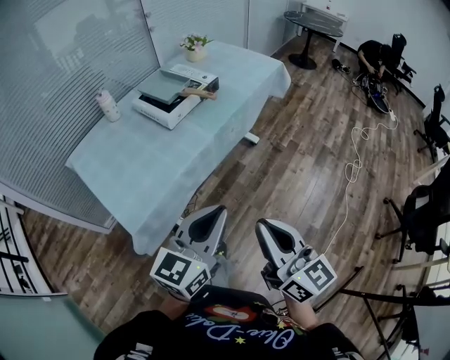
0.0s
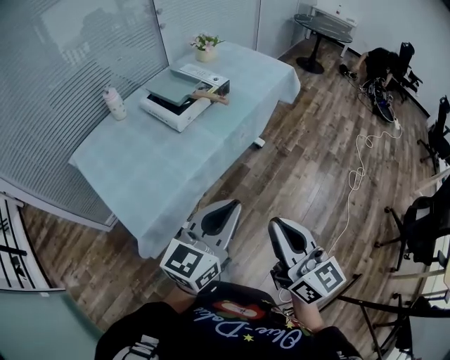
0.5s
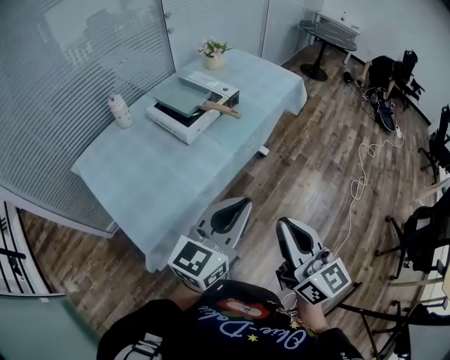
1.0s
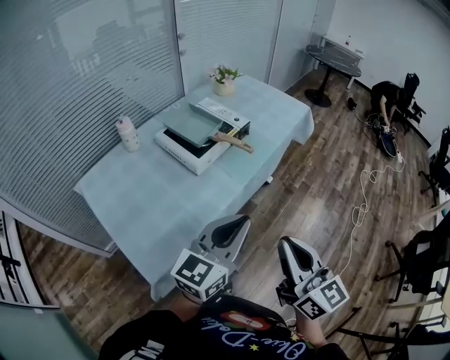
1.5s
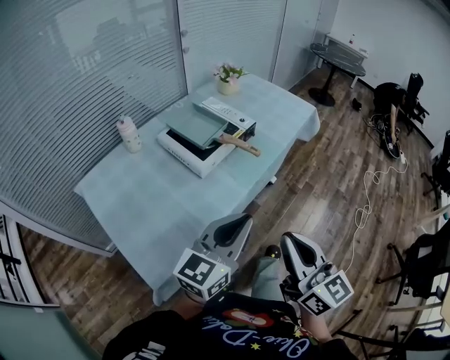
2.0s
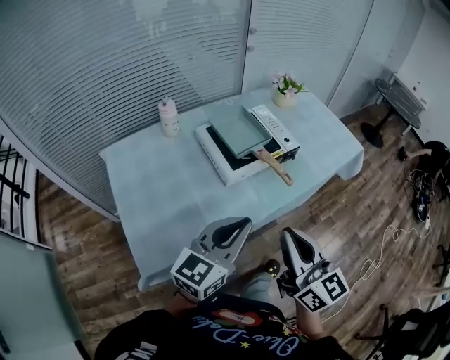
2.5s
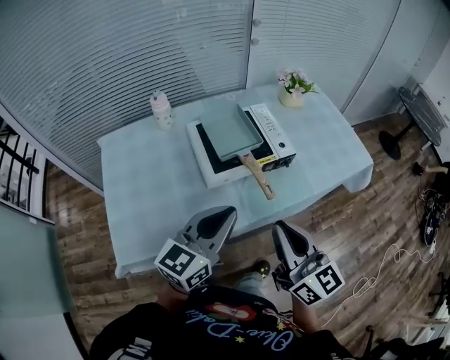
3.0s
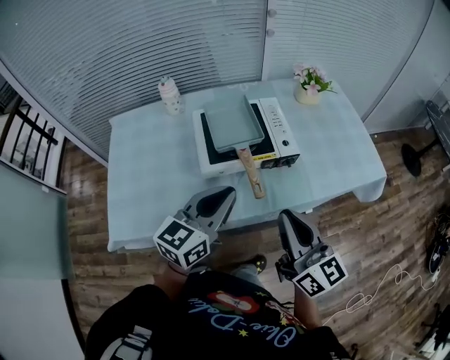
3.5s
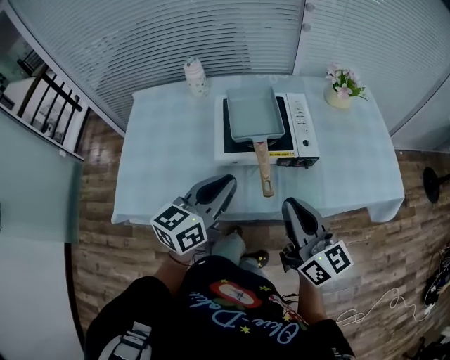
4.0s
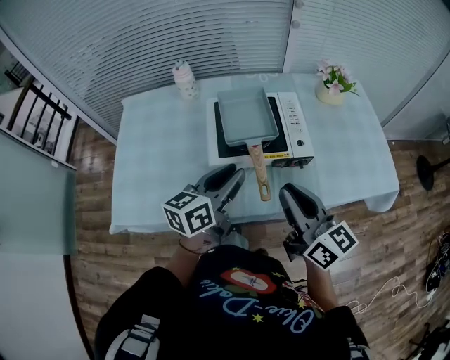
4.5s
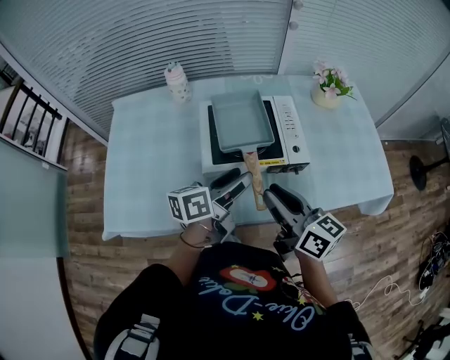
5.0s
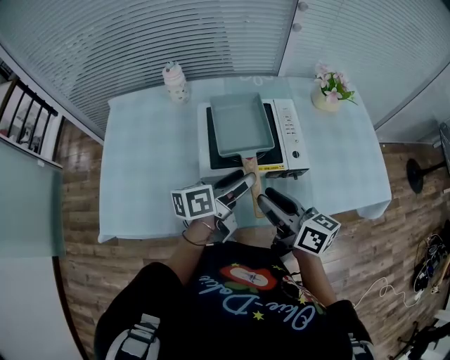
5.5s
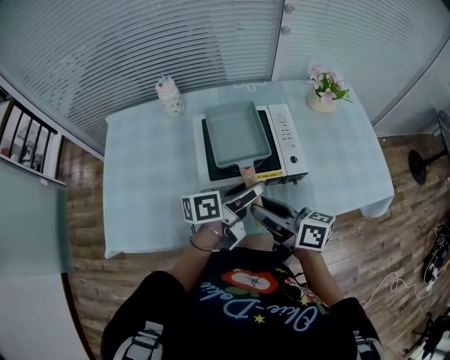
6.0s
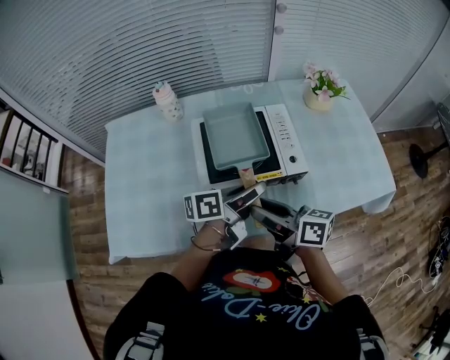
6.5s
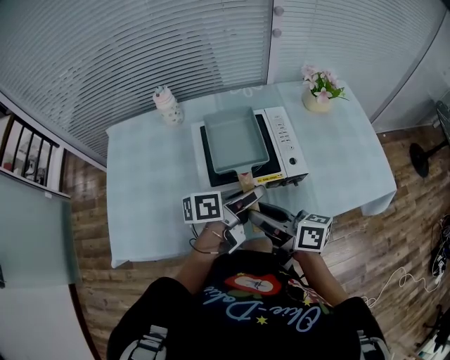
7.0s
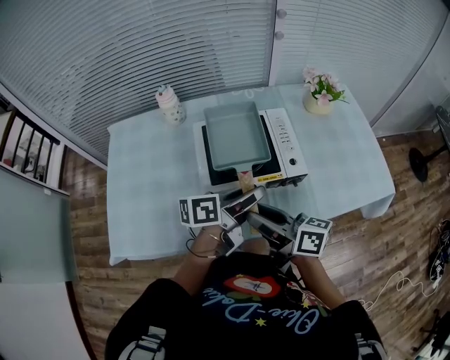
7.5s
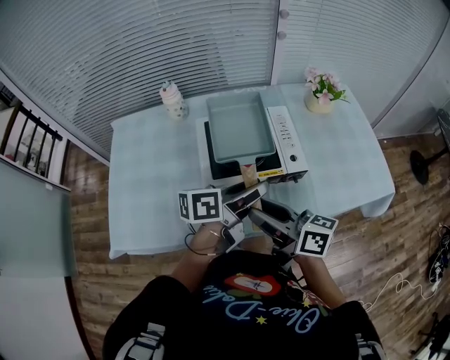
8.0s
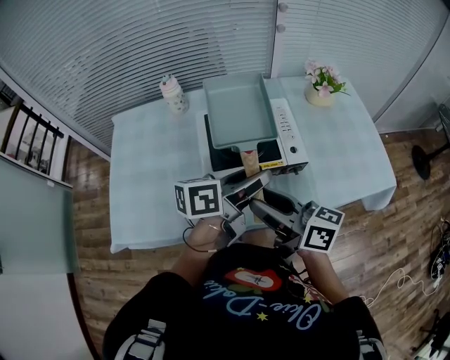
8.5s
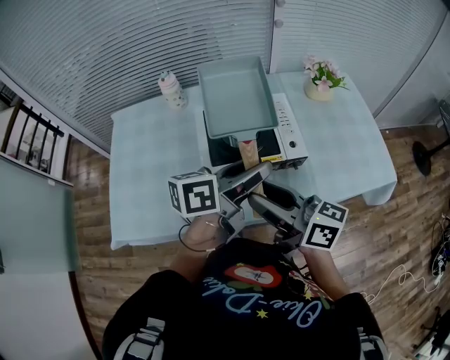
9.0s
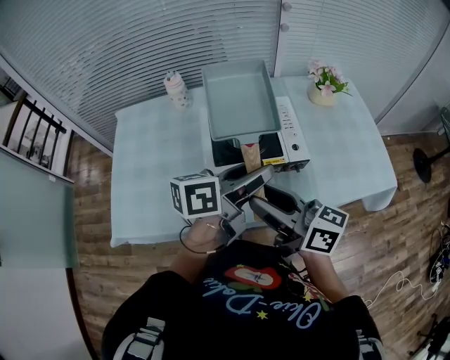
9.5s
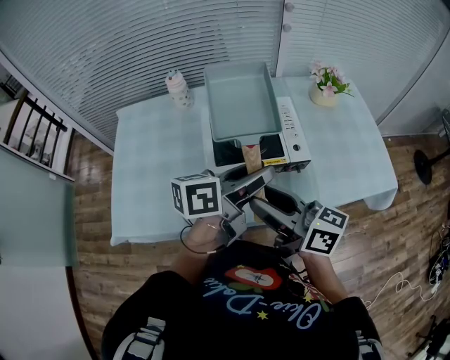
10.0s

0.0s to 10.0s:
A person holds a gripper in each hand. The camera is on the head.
0.0s to 2.0s: The two grippers go approximately 20 cm forward and to the left.
2.0s to 4.0s: The right gripper ends up roughly 30 cm from where it was, and changes its angle by approximately 50 degrees; the left gripper moves some 20 cm, and rotates about 50 degrees.
4.0s to 6.0s: The right gripper shifts about 10 cm forward, downward and to the left, changes its angle by about 30 degrees, and opens up, while the left gripper shifts approximately 15 cm forward, to the right and downward, rotates around the line of its fingers by roughly 40 degrees, counterclockwise from behind, and opens.
6.0s to 8.0s: The right gripper ends up approximately 5 cm from where it was. Meanwhile the left gripper moves upward, some 5 cm.
8.0s to 10.0s: The two grippers go approximately 5 cm upward.

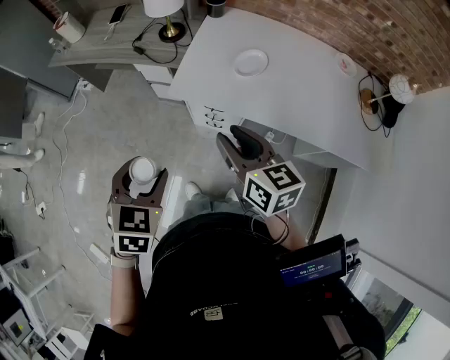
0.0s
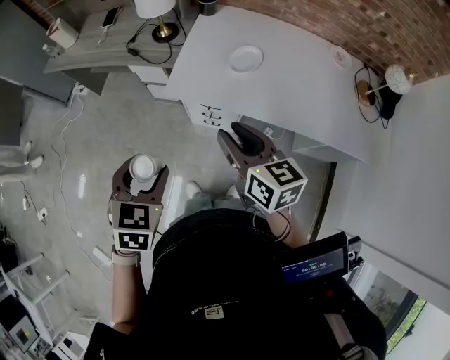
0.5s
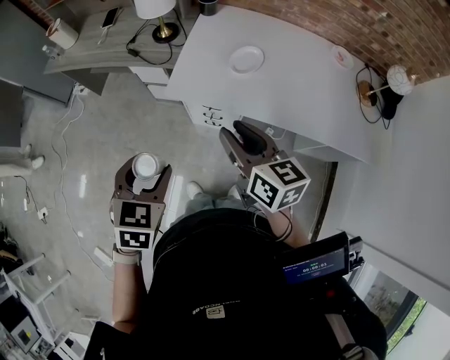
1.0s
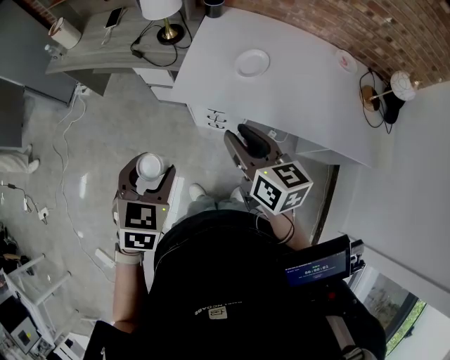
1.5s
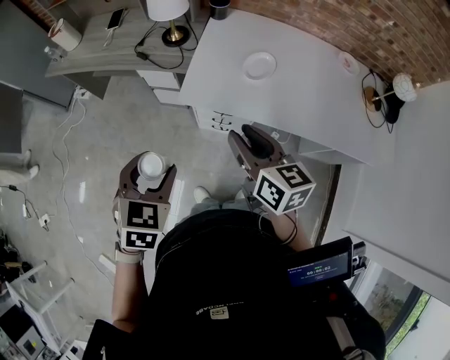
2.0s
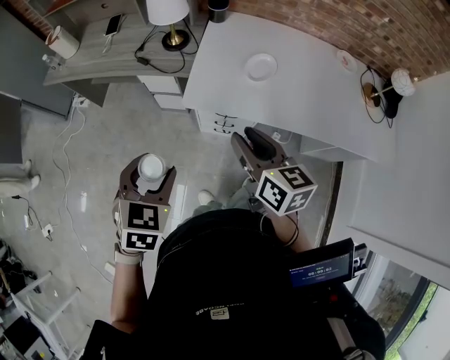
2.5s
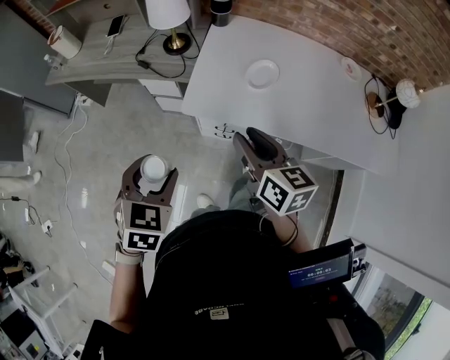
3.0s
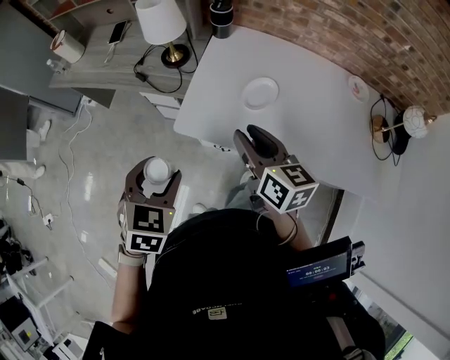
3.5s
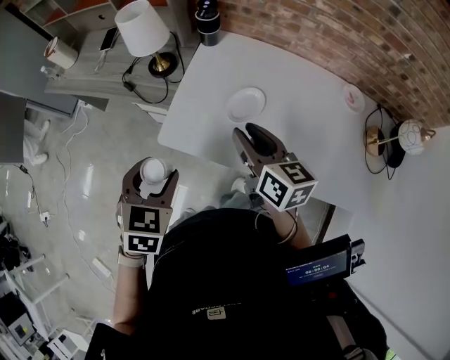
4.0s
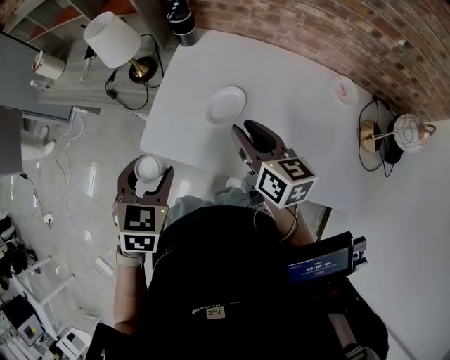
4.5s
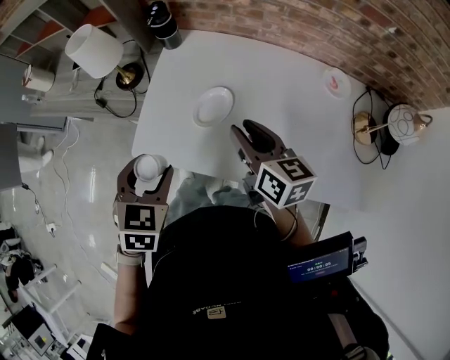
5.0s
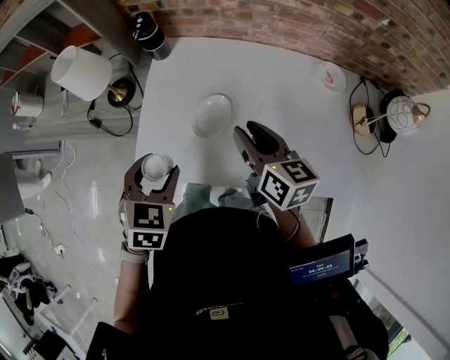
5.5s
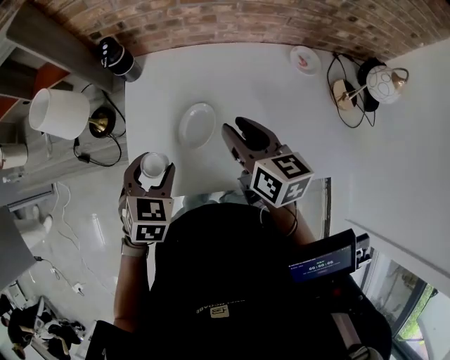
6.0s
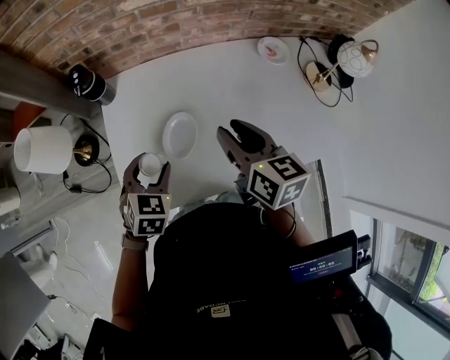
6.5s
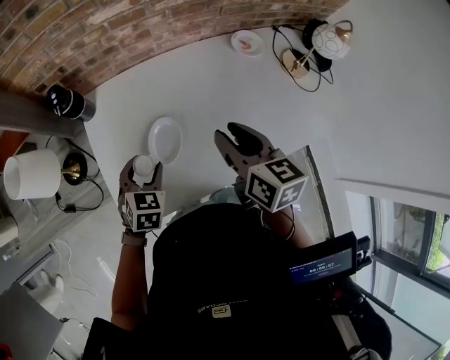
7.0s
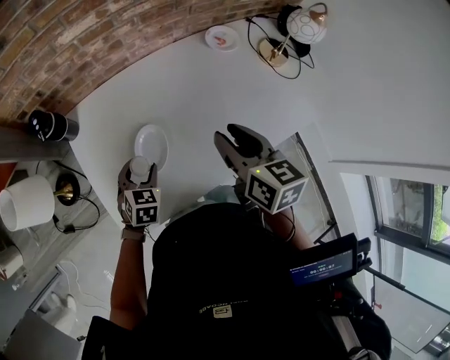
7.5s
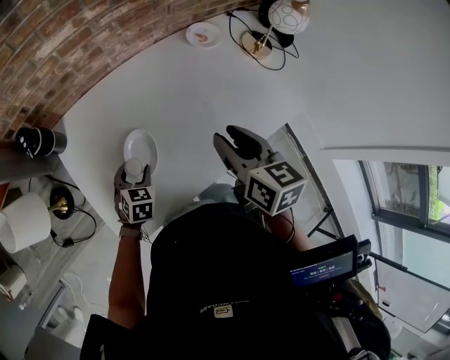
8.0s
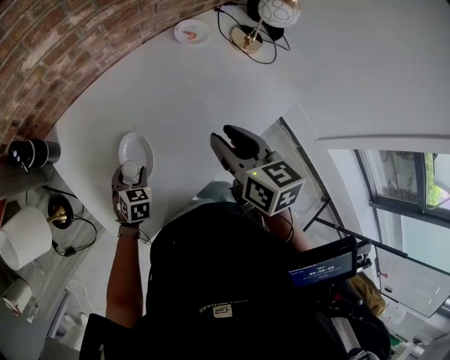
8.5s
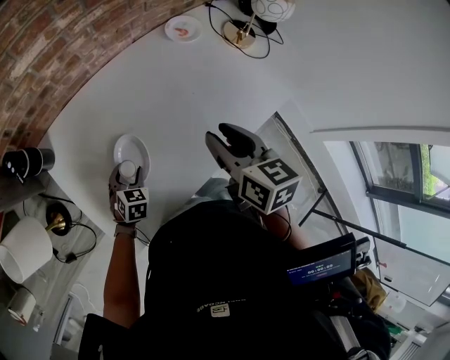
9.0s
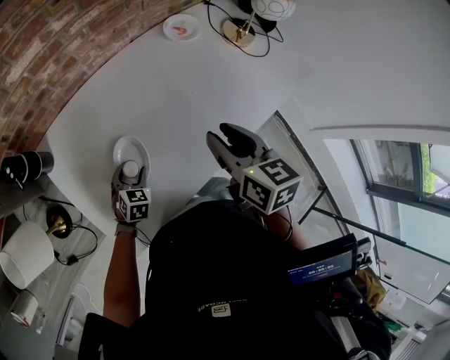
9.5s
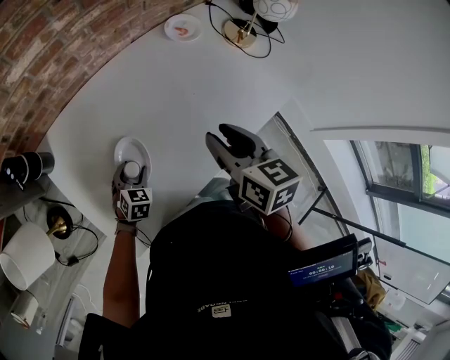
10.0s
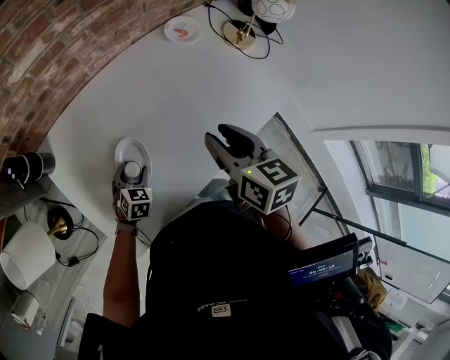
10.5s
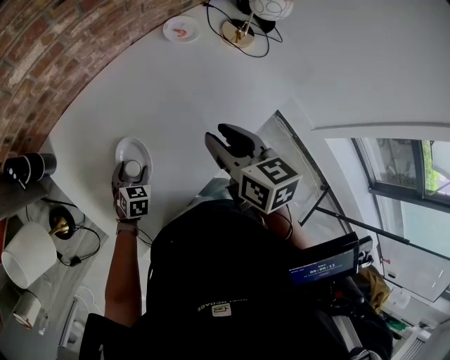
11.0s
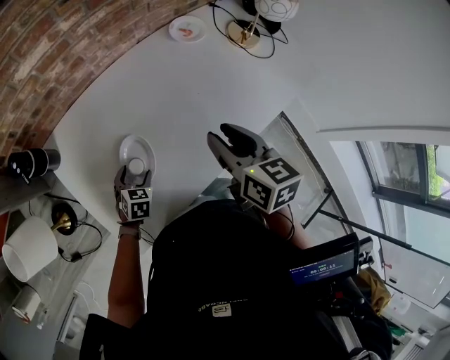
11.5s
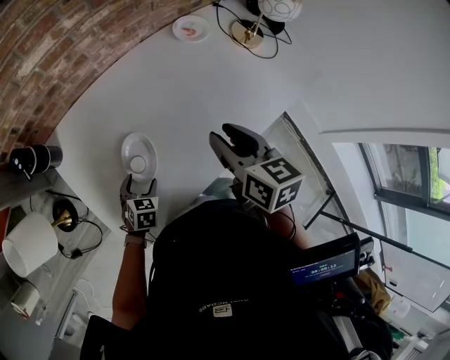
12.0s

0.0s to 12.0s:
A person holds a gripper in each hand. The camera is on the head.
0.0s to 2.0s: The left gripper shifts by about 5 cm.
2.0s to 4.0s: Both grippers travel together forward and to the right, roughly 20 cm.
4.0s to 6.0s: The left gripper heads forward and to the right, covering approximately 20 cm, and changes its angle by roughly 20 degrees. The right gripper moves to the right and forward, roughly 15 cm, and swivels approximately 20 degrees.
6.0s to 8.0s: The left gripper heads downward, covering about 15 cm; the right gripper ends up approximately 10 cm from where it was, and changes its angle by some 30 degrees.
8.0s to 10.0s: The left gripper travels downward by about 5 cm.
10.0s to 12.0s: The left gripper goes about 5 cm backward.

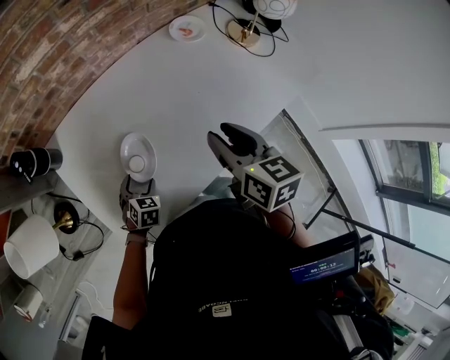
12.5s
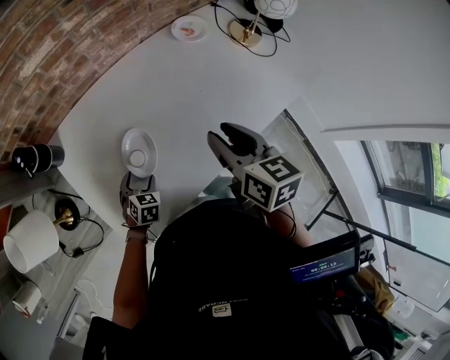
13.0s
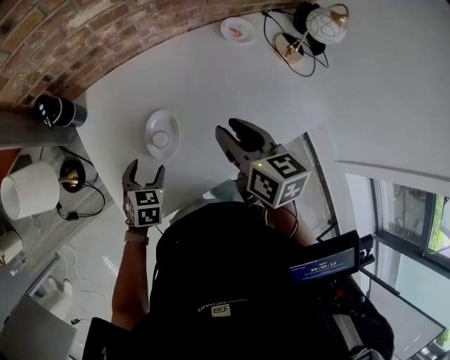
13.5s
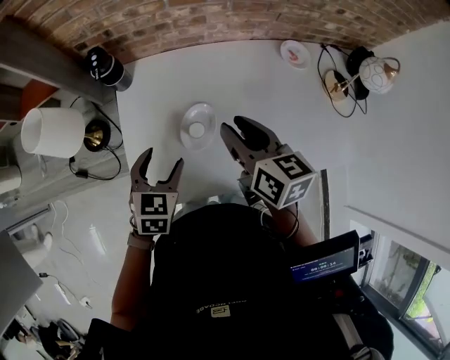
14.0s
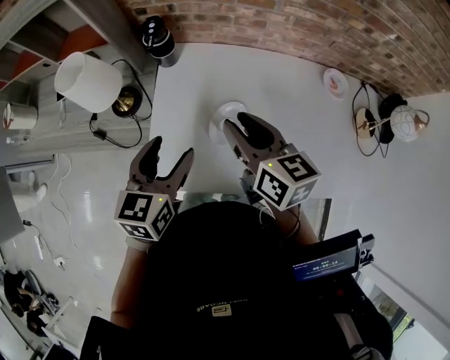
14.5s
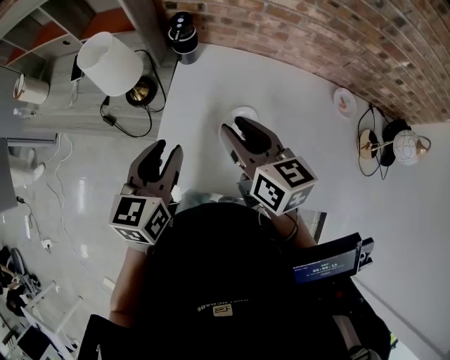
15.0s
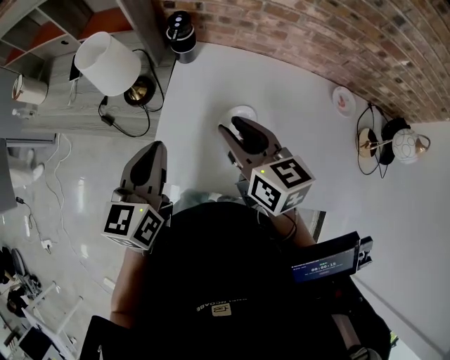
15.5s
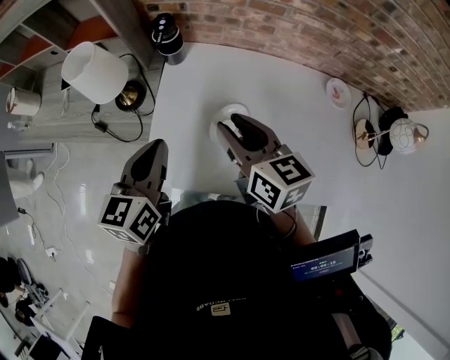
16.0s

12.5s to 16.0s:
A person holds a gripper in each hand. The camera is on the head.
12.5s to 14.5s: The right gripper moves approximately 20 cm, and changes its angle by approximately 40 degrees, while the left gripper travels upward by about 30 cm, and tilts its fingers about 30 degrees upward.
14.5s to 16.0s: The left gripper closes.

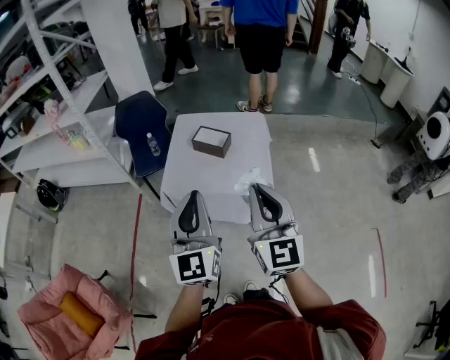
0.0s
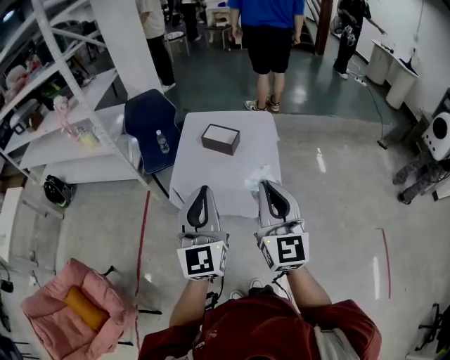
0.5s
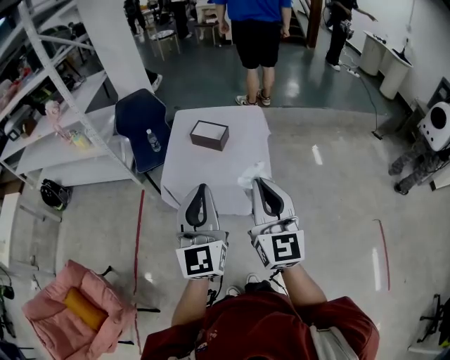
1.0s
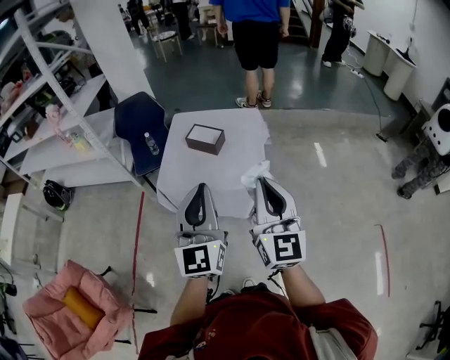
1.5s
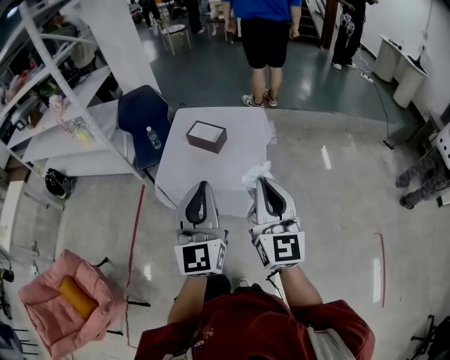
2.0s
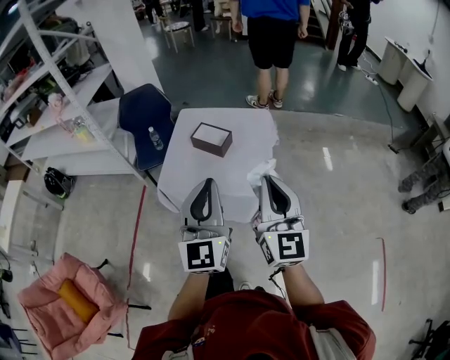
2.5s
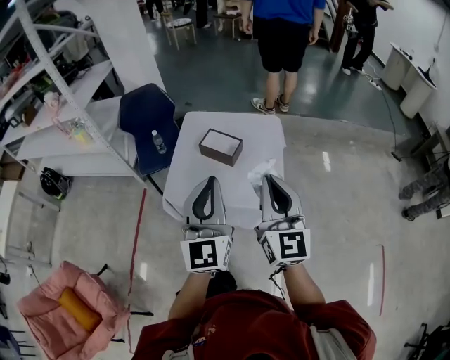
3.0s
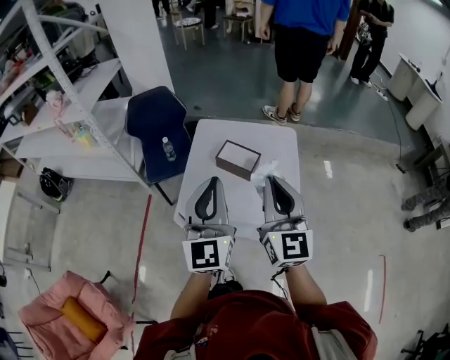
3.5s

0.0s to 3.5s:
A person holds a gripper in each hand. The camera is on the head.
0.0s to 2.0s: Both grippers travel together to the right, roughly 10 cm.
2.0s to 3.5s: The two grippers go approximately 30 cm forward and to the left.
